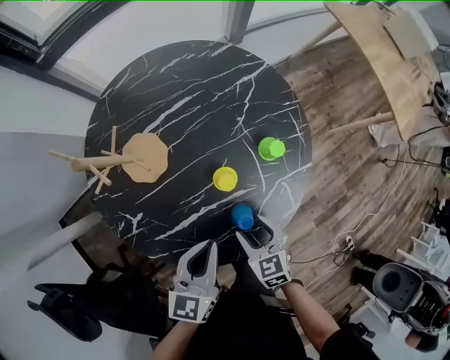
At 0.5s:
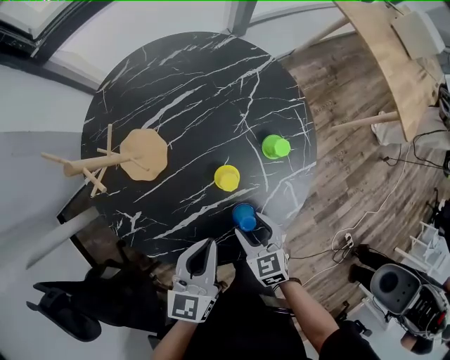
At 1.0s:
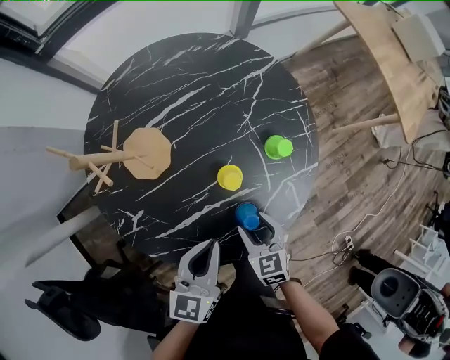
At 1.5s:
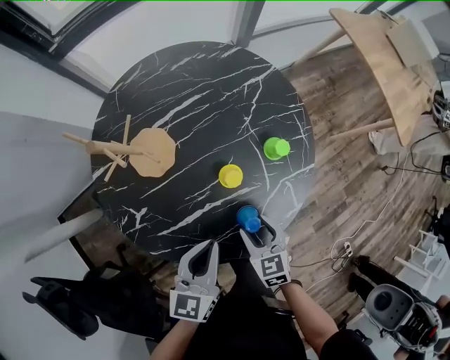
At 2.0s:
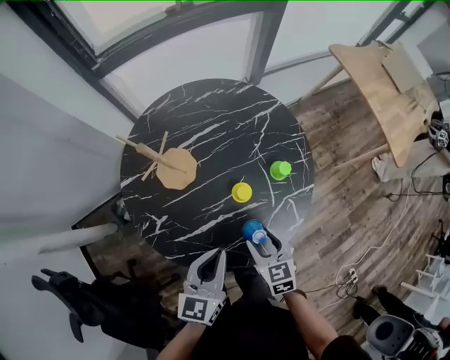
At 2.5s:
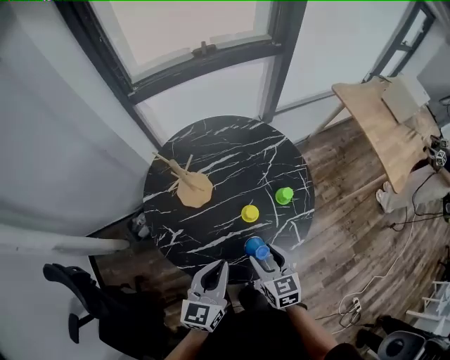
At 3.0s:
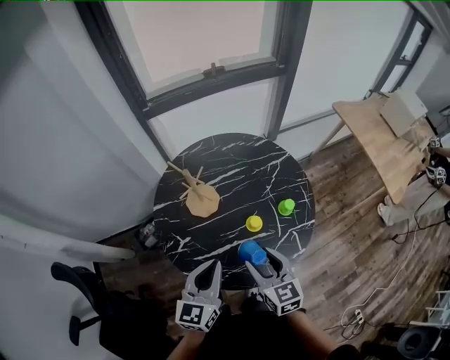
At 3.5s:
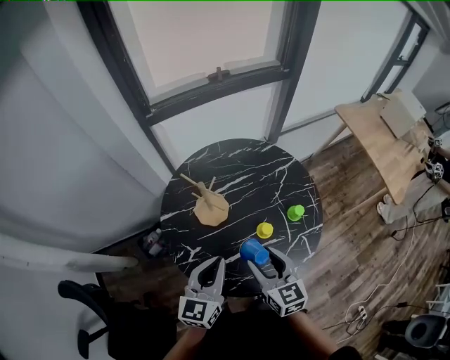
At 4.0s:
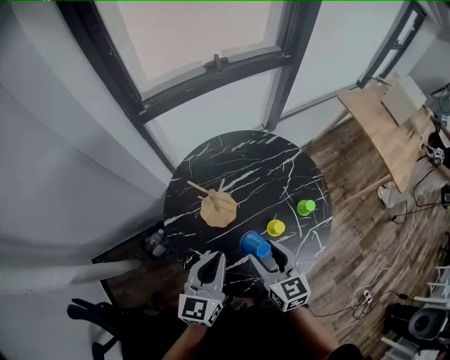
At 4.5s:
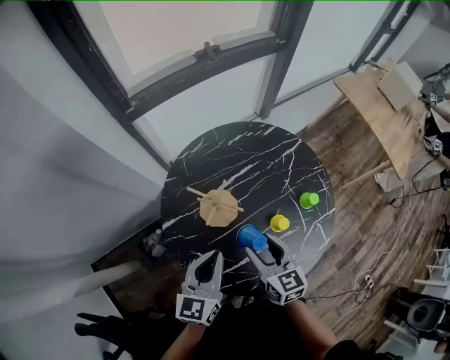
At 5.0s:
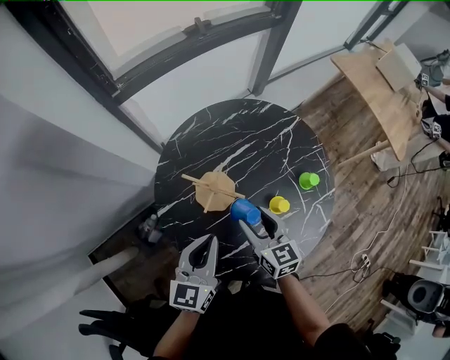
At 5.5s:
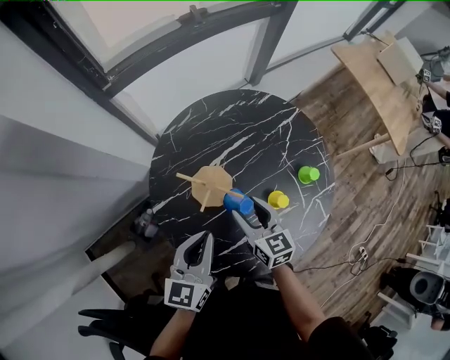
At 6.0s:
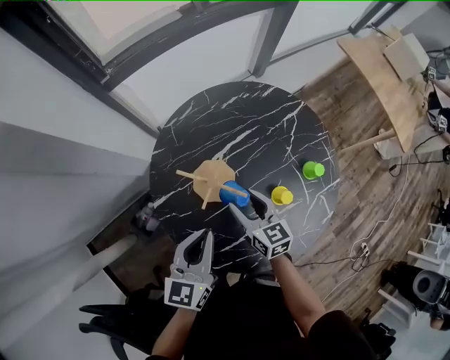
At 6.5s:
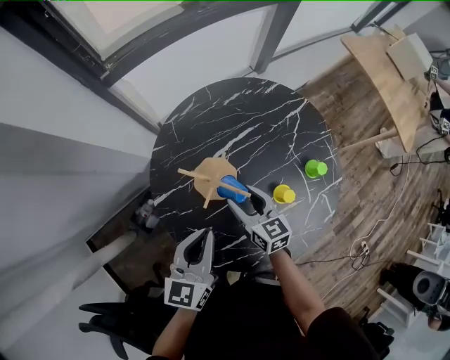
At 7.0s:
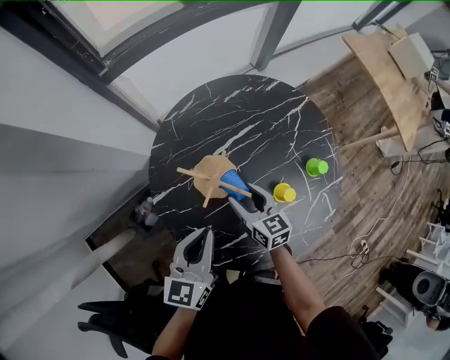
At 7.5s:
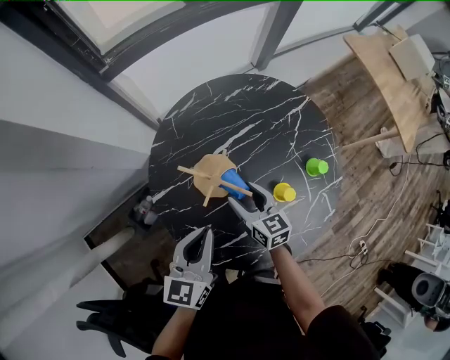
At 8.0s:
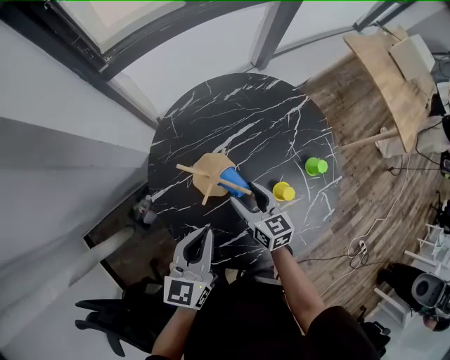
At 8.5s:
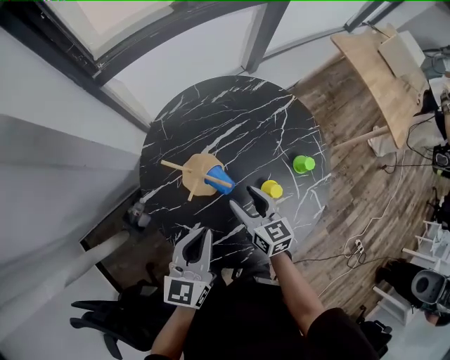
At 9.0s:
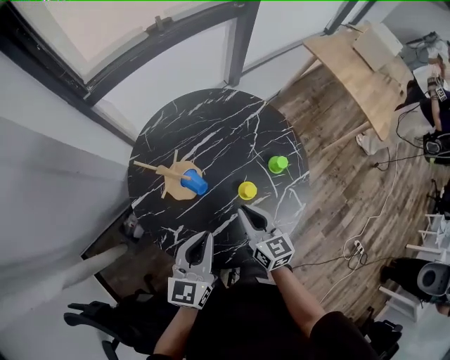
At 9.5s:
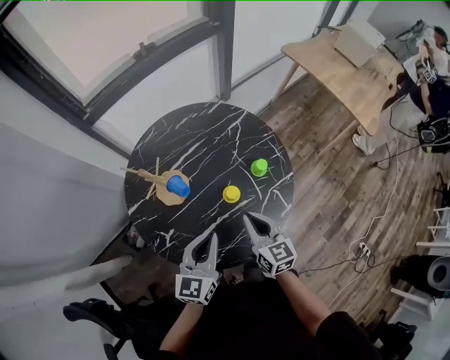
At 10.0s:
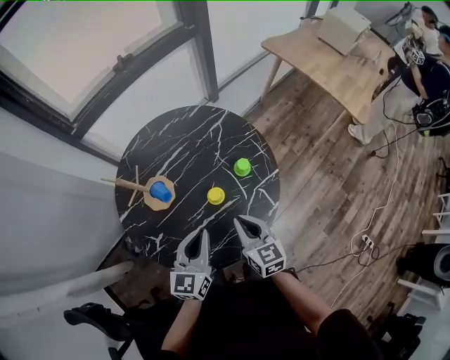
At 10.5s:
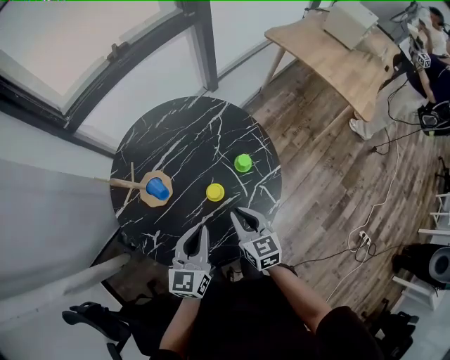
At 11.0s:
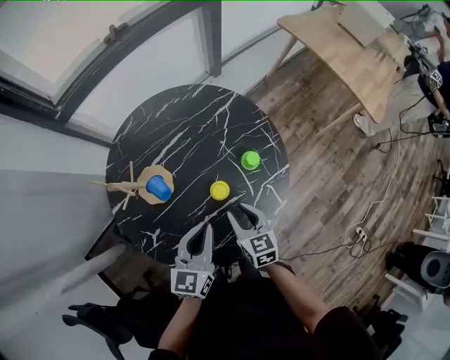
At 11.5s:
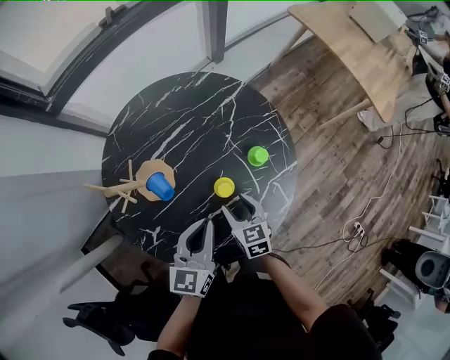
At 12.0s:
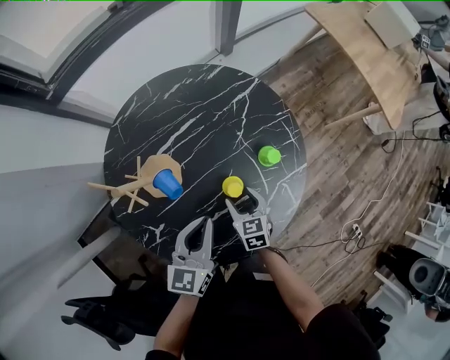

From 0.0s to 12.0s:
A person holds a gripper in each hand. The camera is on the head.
From 0.0s to 2.0s: Both grippers move upward, approximately 5 cm.
From 2.0s to 4.0s: The right gripper moves upward, to the left and forward, approximately 25 cm, while the left gripper heads to the left, forward and upward, covering about 20 cm.
From 4.0s to 6.0s: The right gripper is displaced downward, forward and to the left by approximately 15 cm. The left gripper moves downward and forward, roughly 10 cm.
From 6.0s to 8.0s: There are only small adjustments of the grippers.
From 8.0s to 10.0s: The right gripper moves to the right, backward and upward, about 30 cm, and closes its fingers. The left gripper shifts some 25 cm to the right.
From 10.0s to 12.0s: The left gripper heads forward, downward and to the left, covering about 10 cm. The right gripper travels downward and forward by some 20 cm, rotates about 30 degrees, and opens up.

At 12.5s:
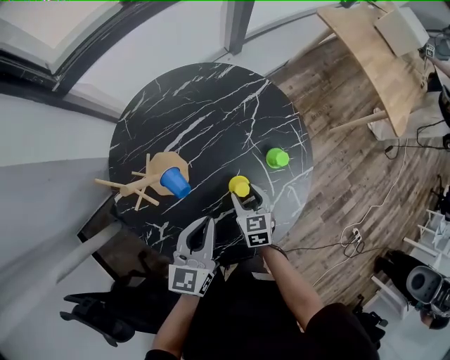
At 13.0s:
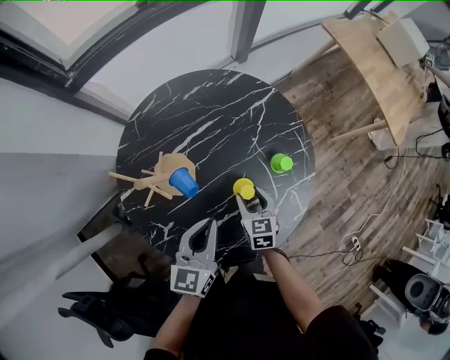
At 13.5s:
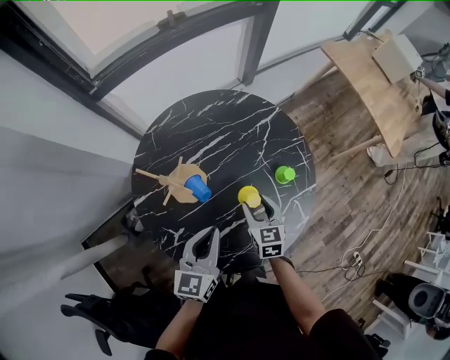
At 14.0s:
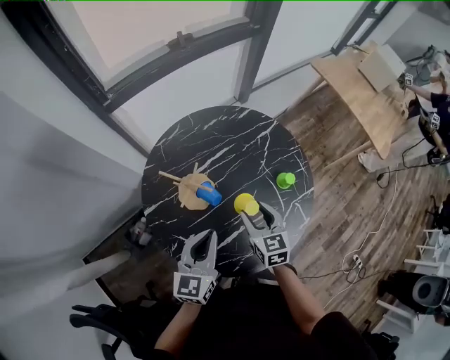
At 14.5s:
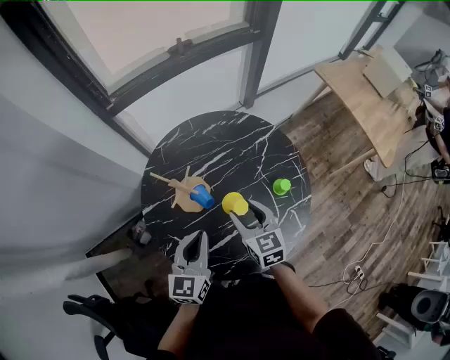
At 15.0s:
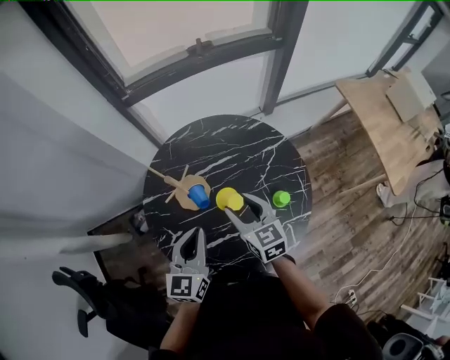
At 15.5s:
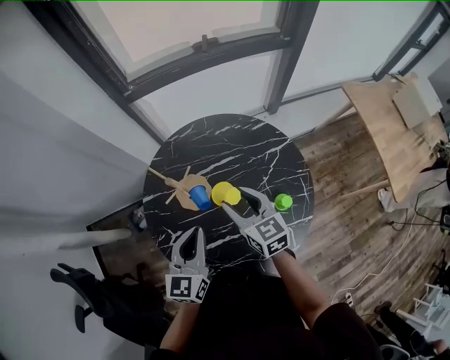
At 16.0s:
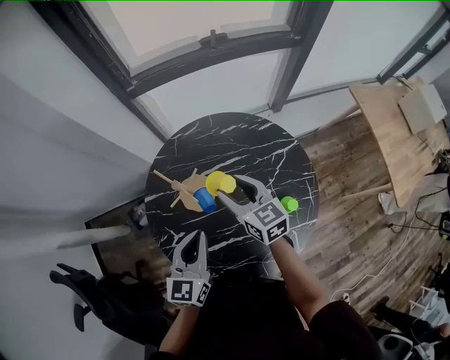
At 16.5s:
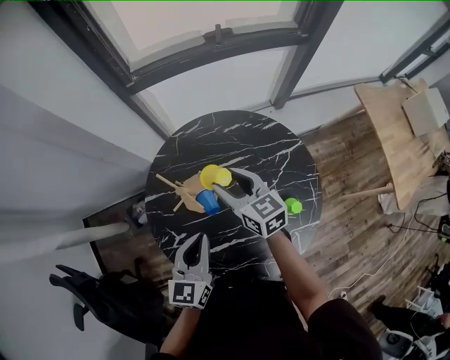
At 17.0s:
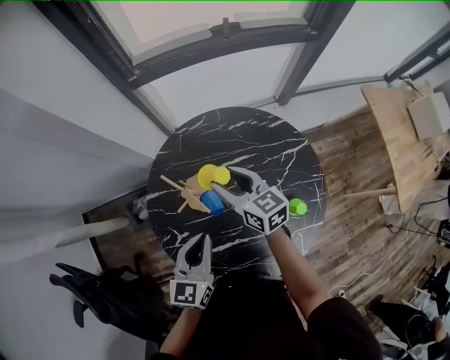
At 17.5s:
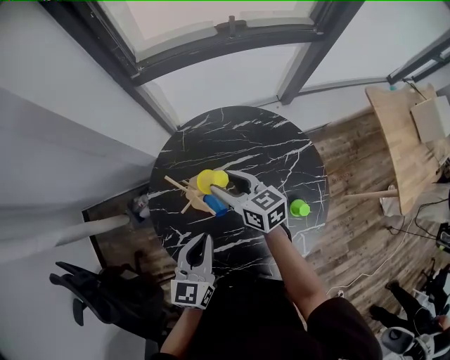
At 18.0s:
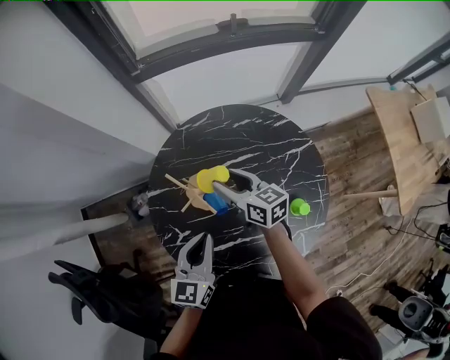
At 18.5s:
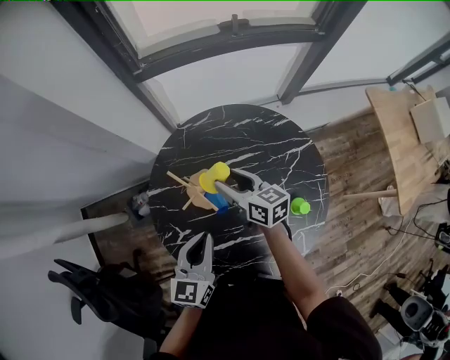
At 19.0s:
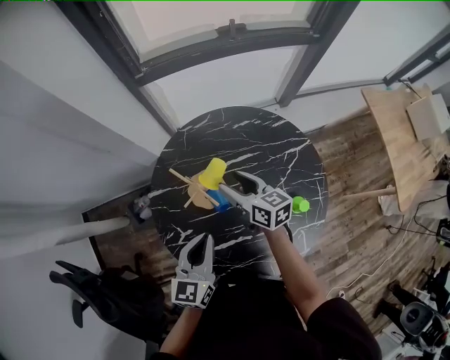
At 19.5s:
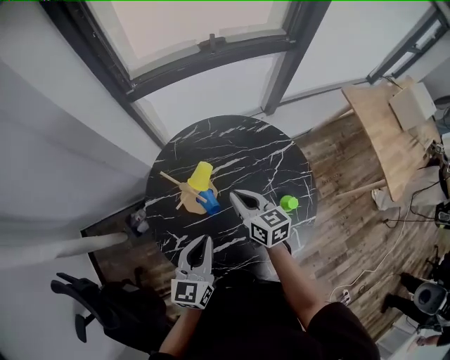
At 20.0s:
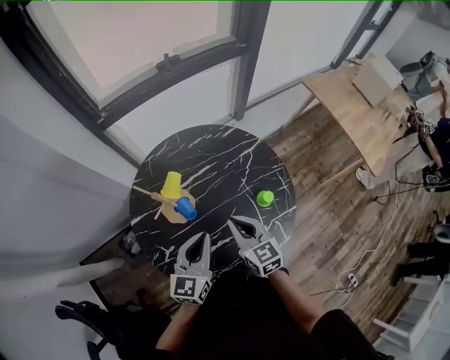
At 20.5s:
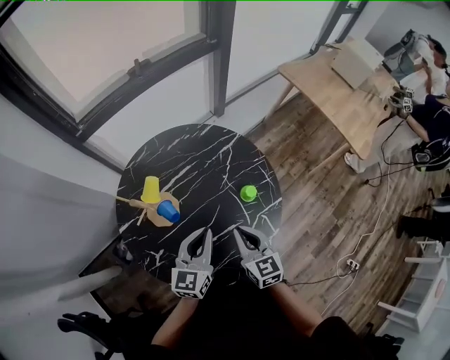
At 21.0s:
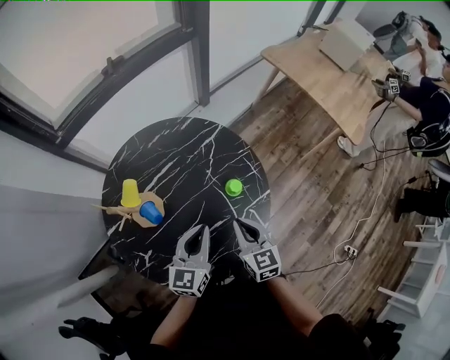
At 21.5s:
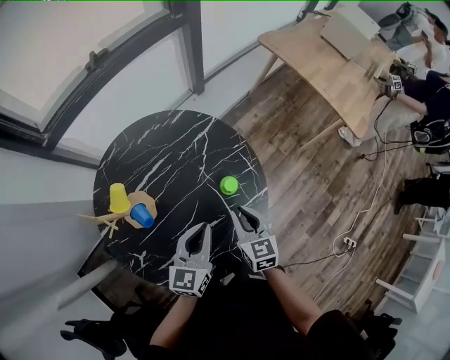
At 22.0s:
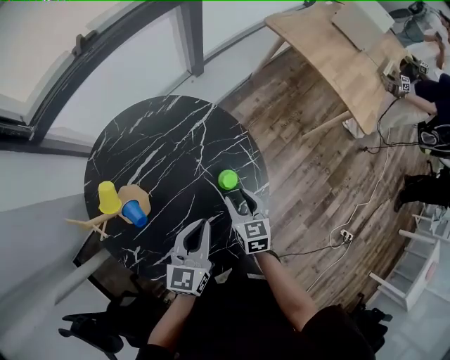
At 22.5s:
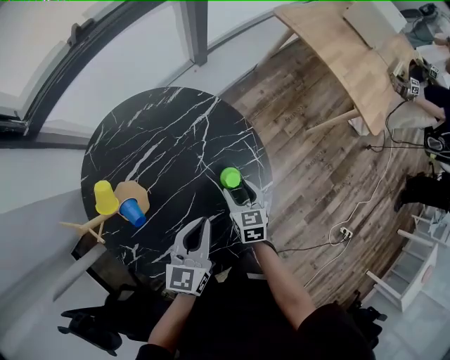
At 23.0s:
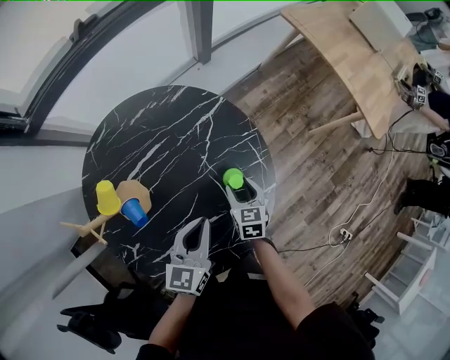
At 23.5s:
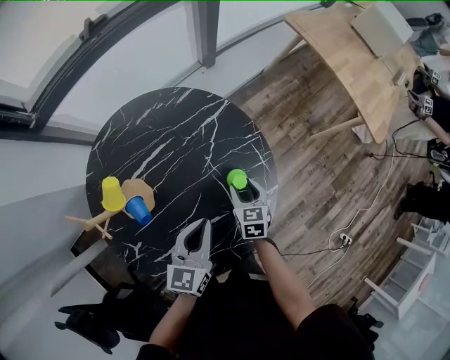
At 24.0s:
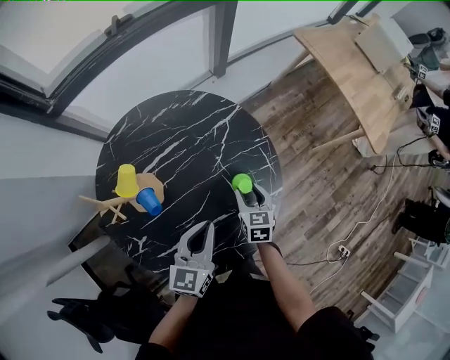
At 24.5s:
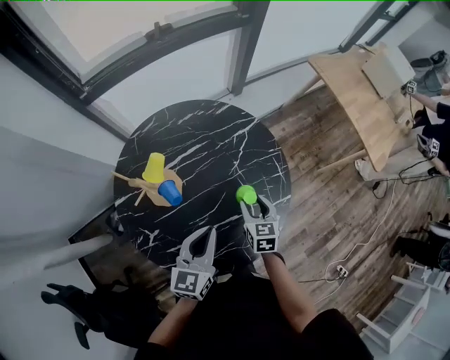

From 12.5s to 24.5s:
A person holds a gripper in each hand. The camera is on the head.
From 12.5s to 14.5s: The left gripper shifts approximately 10 cm upward and to the left; the right gripper heads upward, covering some 20 cm, and rotates some 20 degrees.
From 14.5s to 16.5s: The right gripper travels forward by approximately 15 cm, and rotates some 30 degrees.
From 16.5s to 18.5s: The right gripper heads downward, covering about 5 cm.
From 18.5s to 20.5s: The left gripper moves some 15 cm, and turns by roughly 30 degrees. Meanwhile the right gripper shifts by roughly 30 cm, changes its angle by roughly 40 degrees, and closes up.
From 20.5s to 22.5s: The right gripper goes approximately 25 cm downward, forward and to the right, rotates some 20 degrees, and opens; the left gripper goes approximately 15 cm to the right, downward and forward.
From 22.5s to 24.5s: The right gripper travels upward and to the left by about 10 cm. The left gripper heads backward, to the left and upward, covering about 15 cm.

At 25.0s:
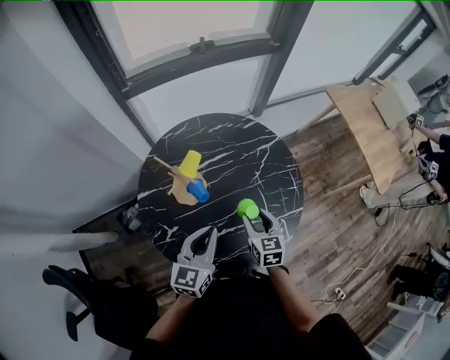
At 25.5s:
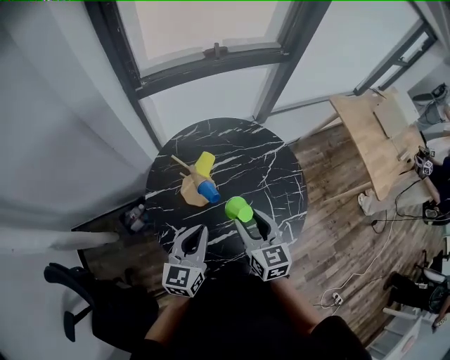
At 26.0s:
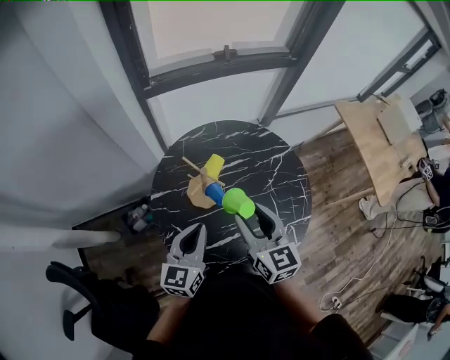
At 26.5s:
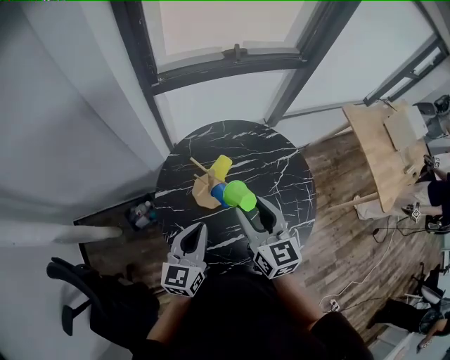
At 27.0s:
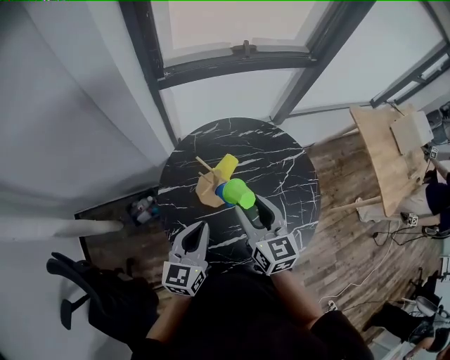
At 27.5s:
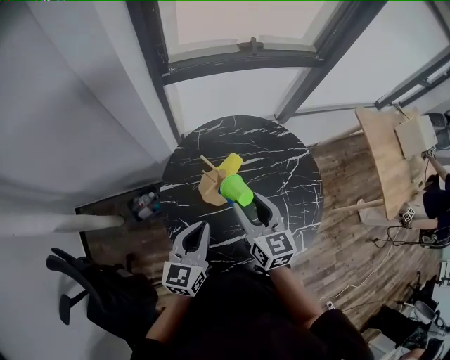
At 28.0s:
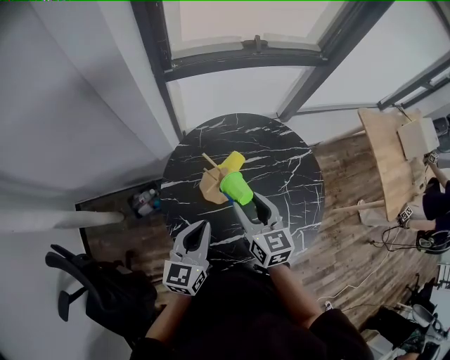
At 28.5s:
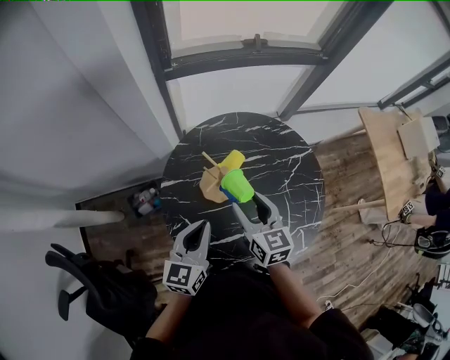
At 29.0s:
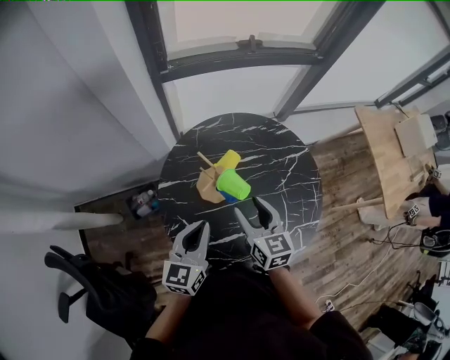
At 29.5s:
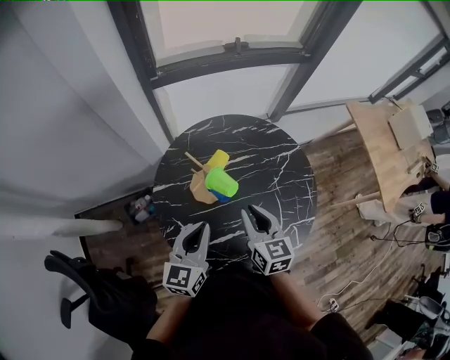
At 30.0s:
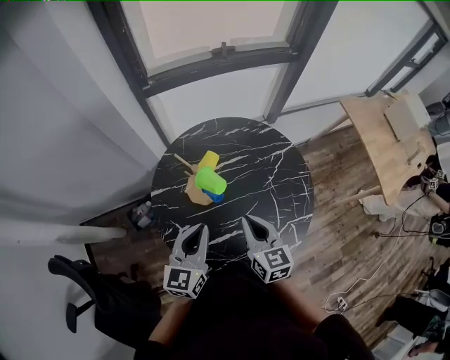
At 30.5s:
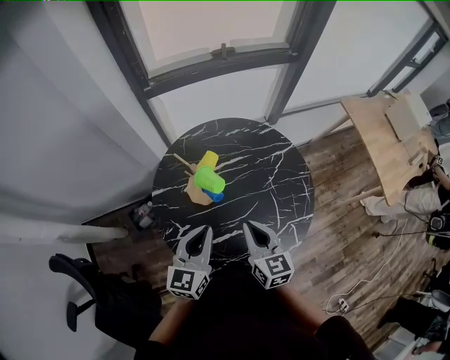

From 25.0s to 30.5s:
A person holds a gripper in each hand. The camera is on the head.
From 25.0s to 27.0s: The left gripper shifts some 15 cm to the left, while the right gripper travels to the left and upward by about 20 cm, and turns by approximately 20 degrees.
From 27.0s to 28.5s: The right gripper moves downward, roughly 5 cm.
From 28.5s to 30.5s: The left gripper is displaced to the right by approximately 10 cm. The right gripper shifts roughly 15 cm backward and to the right, and closes up.
